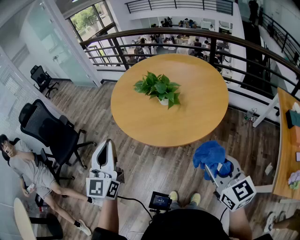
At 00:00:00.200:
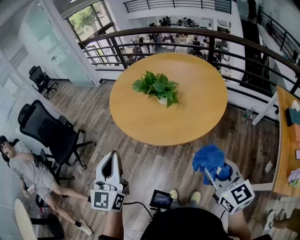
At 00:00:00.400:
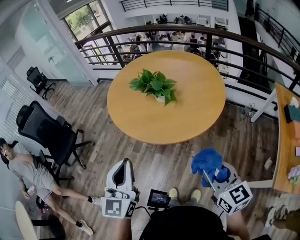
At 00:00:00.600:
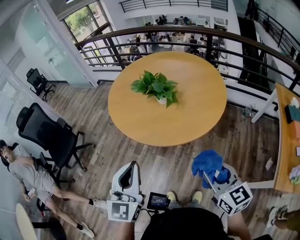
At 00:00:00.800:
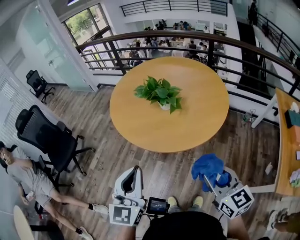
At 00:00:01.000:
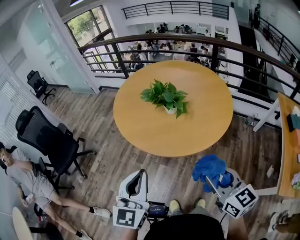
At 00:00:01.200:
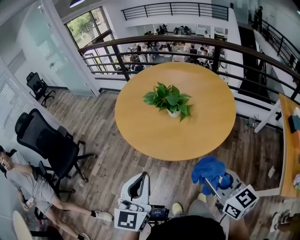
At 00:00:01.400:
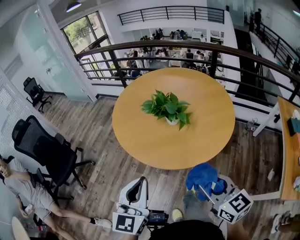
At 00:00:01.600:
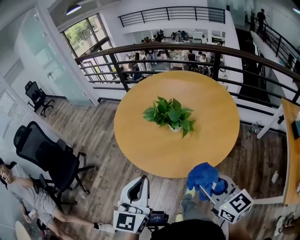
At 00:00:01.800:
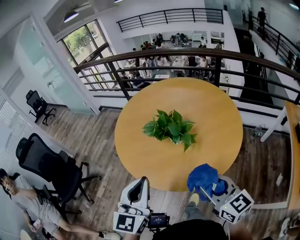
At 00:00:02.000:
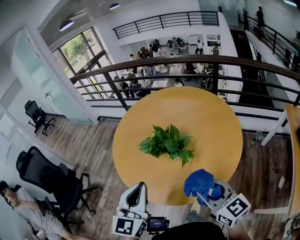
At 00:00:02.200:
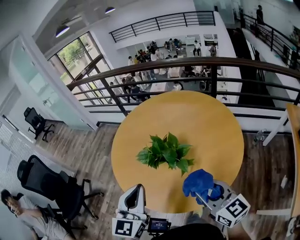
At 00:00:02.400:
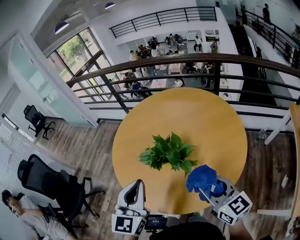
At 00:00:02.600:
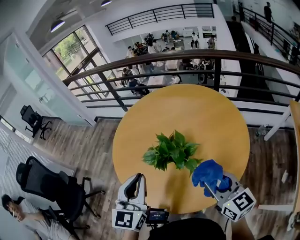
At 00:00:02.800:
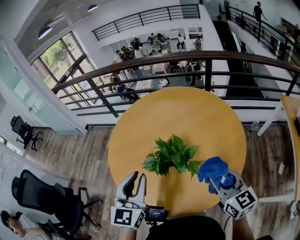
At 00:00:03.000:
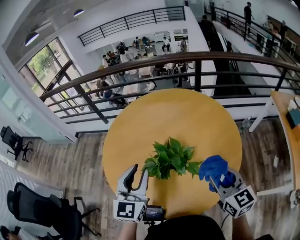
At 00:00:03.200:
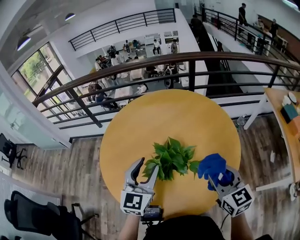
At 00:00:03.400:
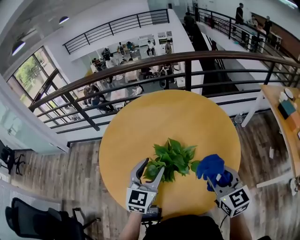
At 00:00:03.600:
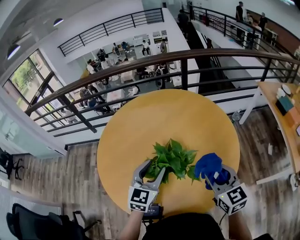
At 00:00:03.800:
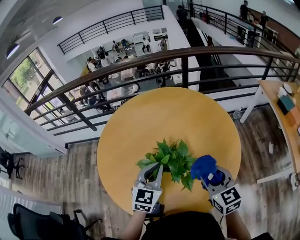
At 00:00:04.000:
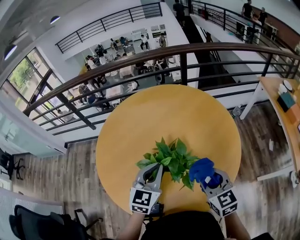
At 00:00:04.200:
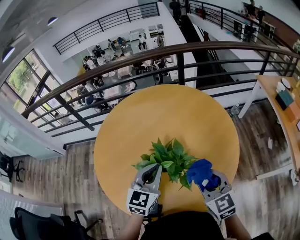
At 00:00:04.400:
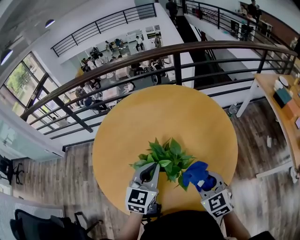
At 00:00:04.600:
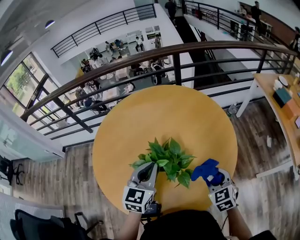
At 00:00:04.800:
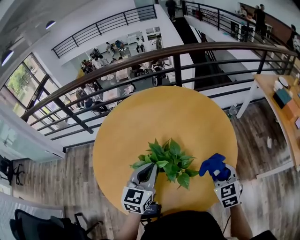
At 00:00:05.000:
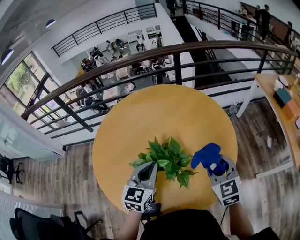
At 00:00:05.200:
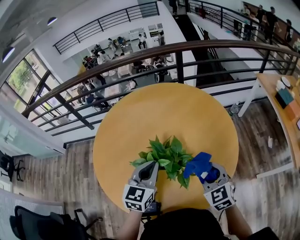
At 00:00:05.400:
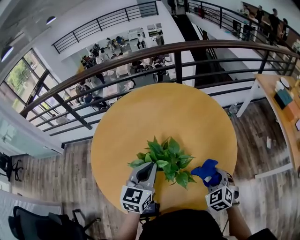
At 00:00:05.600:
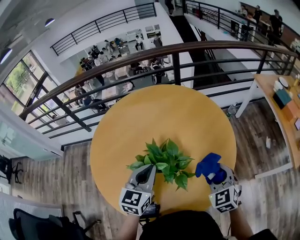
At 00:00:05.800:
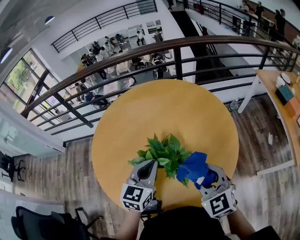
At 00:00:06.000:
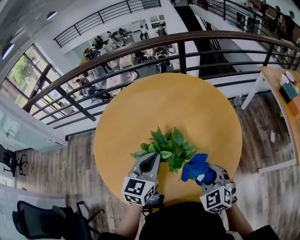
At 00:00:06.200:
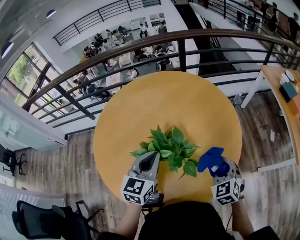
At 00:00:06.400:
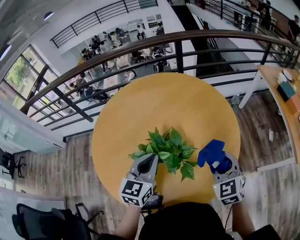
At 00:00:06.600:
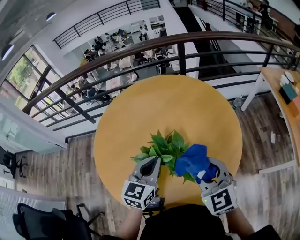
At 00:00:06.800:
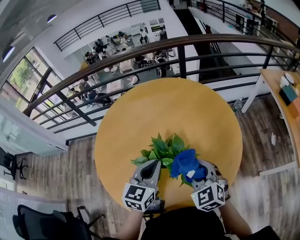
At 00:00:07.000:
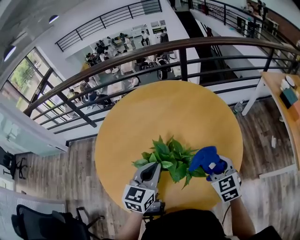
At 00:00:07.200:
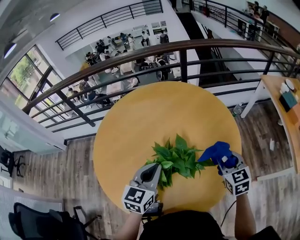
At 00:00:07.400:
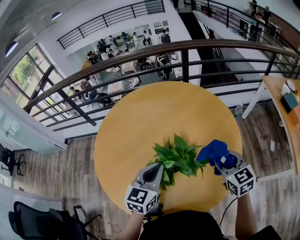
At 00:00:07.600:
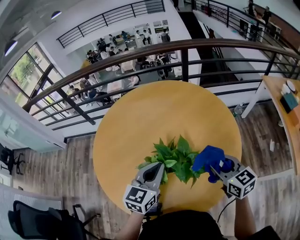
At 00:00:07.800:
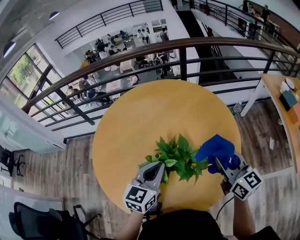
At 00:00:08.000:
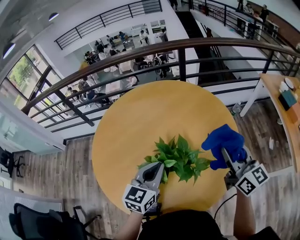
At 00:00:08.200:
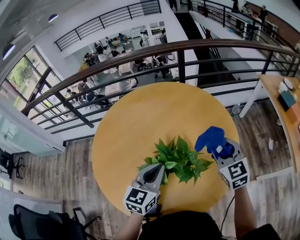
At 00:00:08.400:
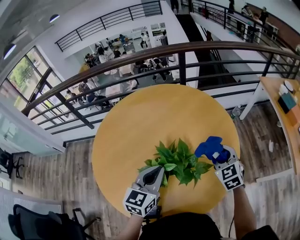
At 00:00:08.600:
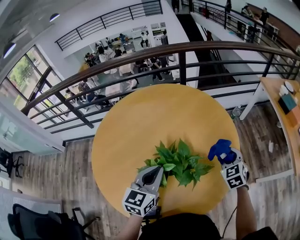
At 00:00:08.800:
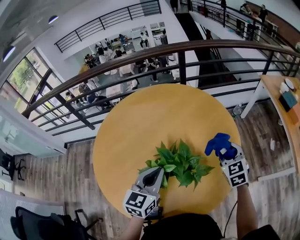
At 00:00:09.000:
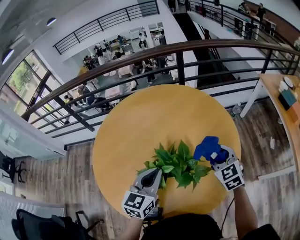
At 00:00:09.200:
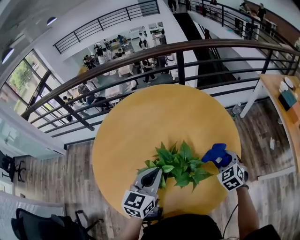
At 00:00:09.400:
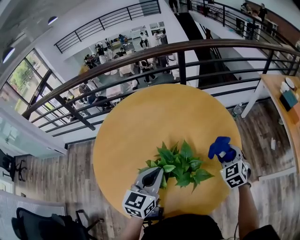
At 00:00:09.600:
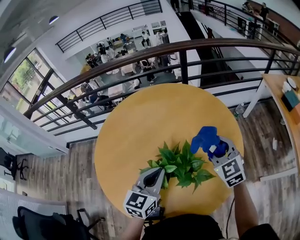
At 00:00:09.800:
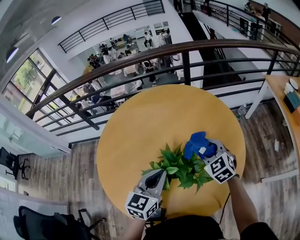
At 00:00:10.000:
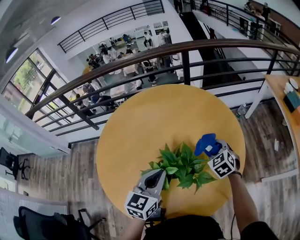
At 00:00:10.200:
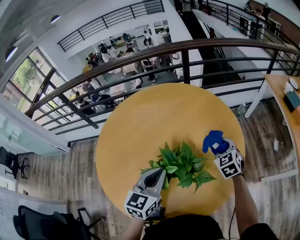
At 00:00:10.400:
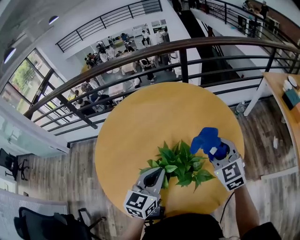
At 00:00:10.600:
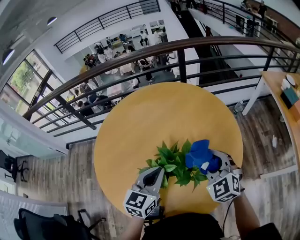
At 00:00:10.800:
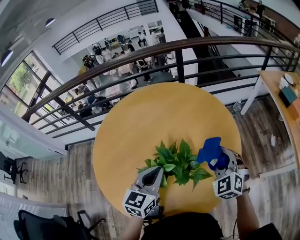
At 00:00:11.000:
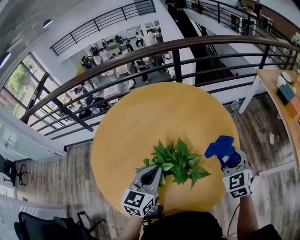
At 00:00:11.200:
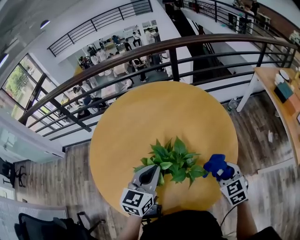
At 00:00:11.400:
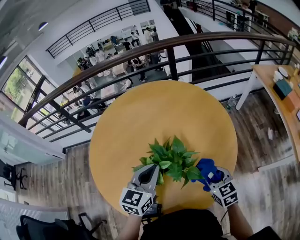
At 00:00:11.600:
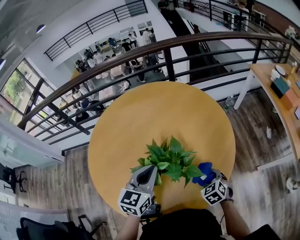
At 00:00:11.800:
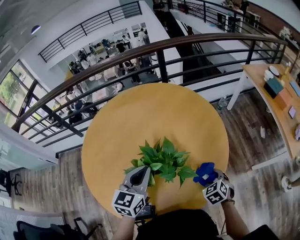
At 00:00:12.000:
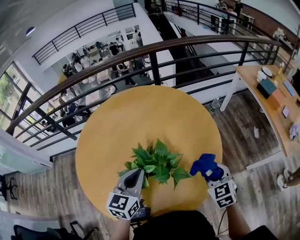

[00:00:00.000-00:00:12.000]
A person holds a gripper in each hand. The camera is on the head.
00:00:00.000 to 00:00:01.600: The left gripper travels forward and downward by roughly 10 cm; the right gripper shifts some 15 cm forward and to the left.
00:00:01.600 to 00:00:03.000: Both grippers travel together forward, about 30 cm. The right gripper turns by roughly 30 degrees. Meanwhile the left gripper opens up.
00:00:03.000 to 00:00:04.400: The left gripper heads downward, forward and to the right, covering approximately 10 cm, rotates roughly 20 degrees, and closes up, while the right gripper shifts about 10 cm downward and to the left, and turns by some 20 degrees.
00:00:04.400 to 00:00:06.000: The right gripper swings up and down, about 10 cm each way, with 3 reversals.
00:00:06.000 to 00:00:07.600: The right gripper moves left and right over roughly 15 cm, changing direction 3 times, and rotates approximately 30 degrees.
00:00:07.600 to 00:00:09.000: The right gripper shifts roughly 5 cm forward, moves approximately 10 cm upward and comes back, and turns by about 30 degrees.
00:00:09.000 to 00:00:10.400: The right gripper moves up and down over some 10 cm, changing direction 3 times.
00:00:10.400 to 00:00:12.000: The right gripper goes roughly 20 cm backward, to the right and downward, and rotates approximately 20 degrees.

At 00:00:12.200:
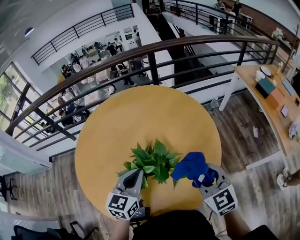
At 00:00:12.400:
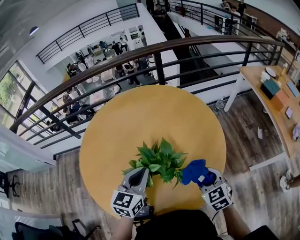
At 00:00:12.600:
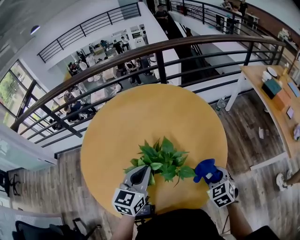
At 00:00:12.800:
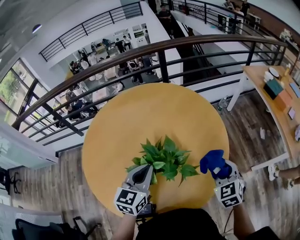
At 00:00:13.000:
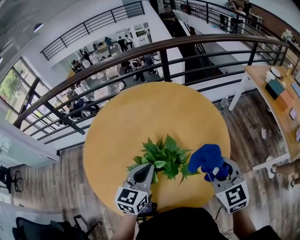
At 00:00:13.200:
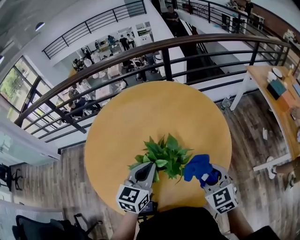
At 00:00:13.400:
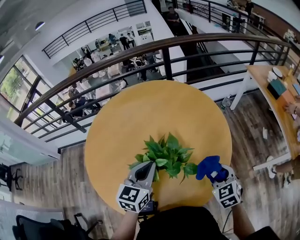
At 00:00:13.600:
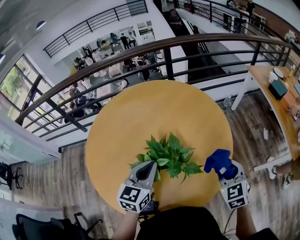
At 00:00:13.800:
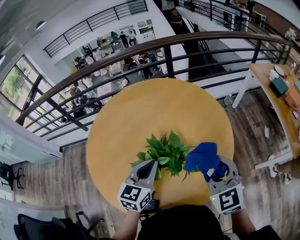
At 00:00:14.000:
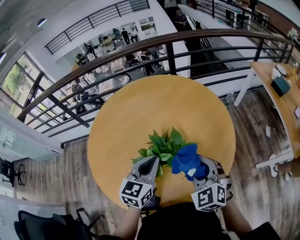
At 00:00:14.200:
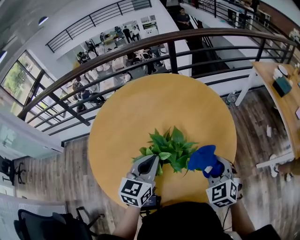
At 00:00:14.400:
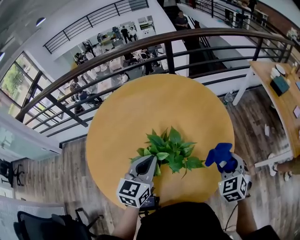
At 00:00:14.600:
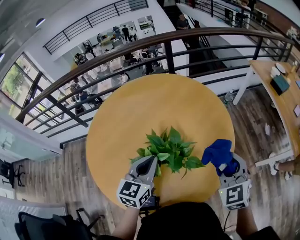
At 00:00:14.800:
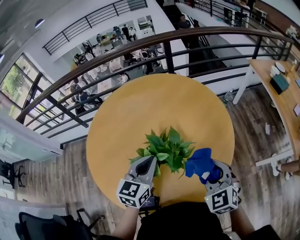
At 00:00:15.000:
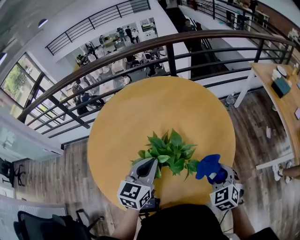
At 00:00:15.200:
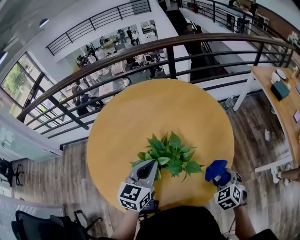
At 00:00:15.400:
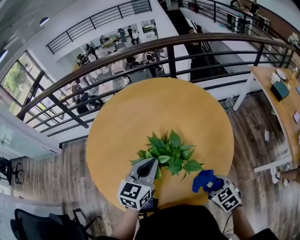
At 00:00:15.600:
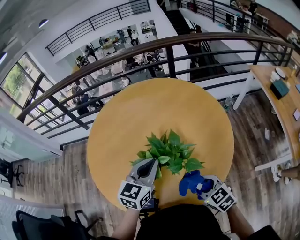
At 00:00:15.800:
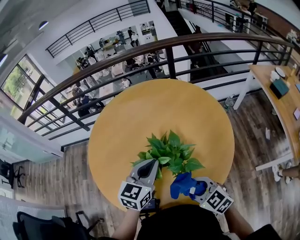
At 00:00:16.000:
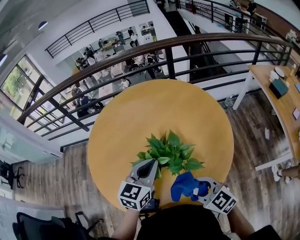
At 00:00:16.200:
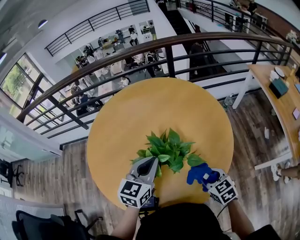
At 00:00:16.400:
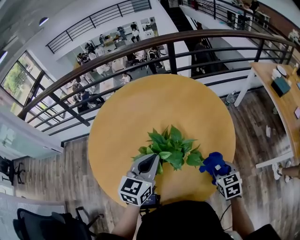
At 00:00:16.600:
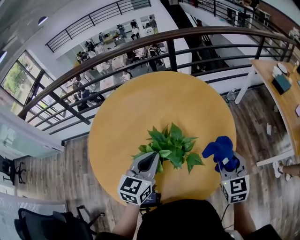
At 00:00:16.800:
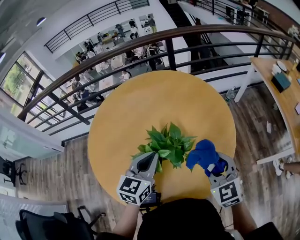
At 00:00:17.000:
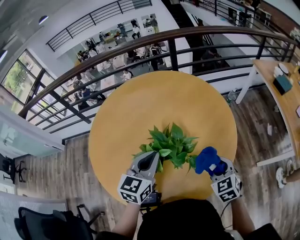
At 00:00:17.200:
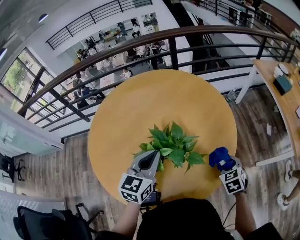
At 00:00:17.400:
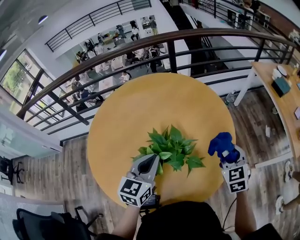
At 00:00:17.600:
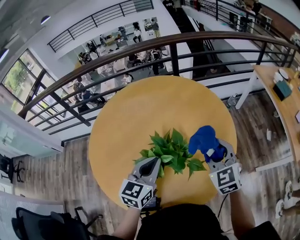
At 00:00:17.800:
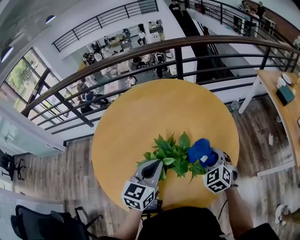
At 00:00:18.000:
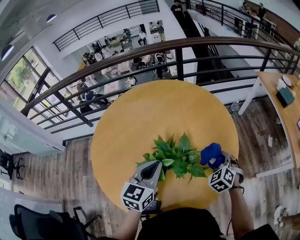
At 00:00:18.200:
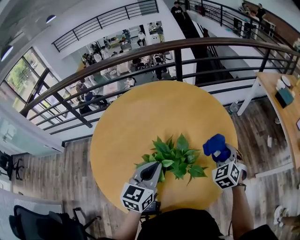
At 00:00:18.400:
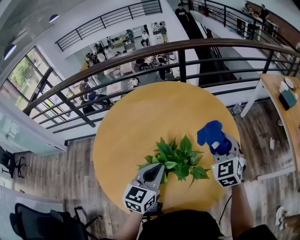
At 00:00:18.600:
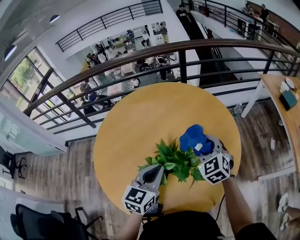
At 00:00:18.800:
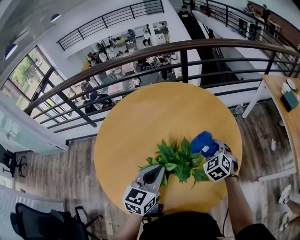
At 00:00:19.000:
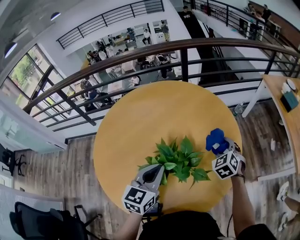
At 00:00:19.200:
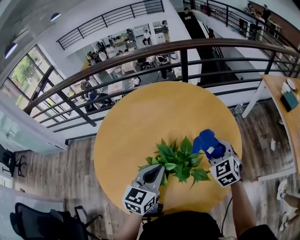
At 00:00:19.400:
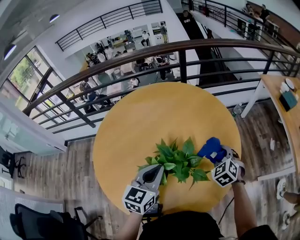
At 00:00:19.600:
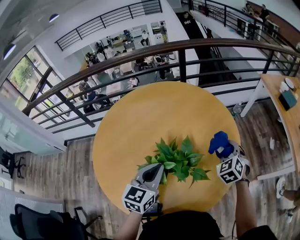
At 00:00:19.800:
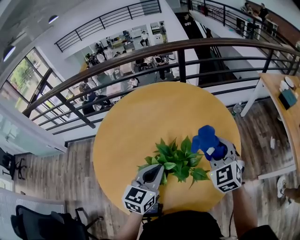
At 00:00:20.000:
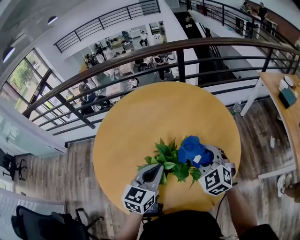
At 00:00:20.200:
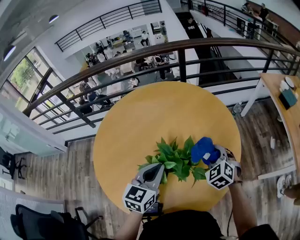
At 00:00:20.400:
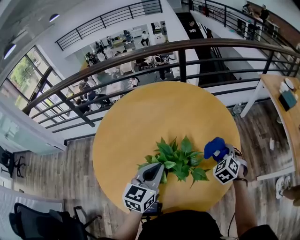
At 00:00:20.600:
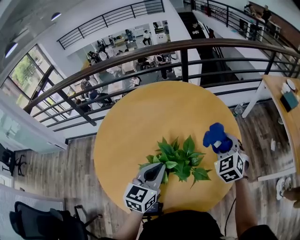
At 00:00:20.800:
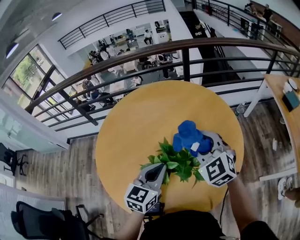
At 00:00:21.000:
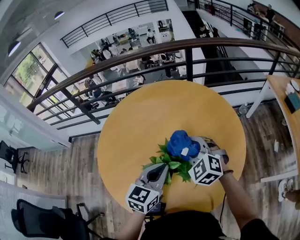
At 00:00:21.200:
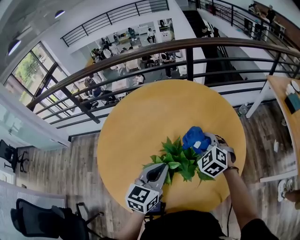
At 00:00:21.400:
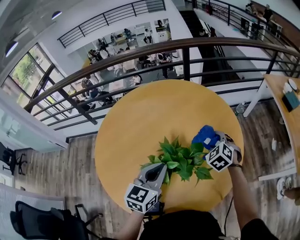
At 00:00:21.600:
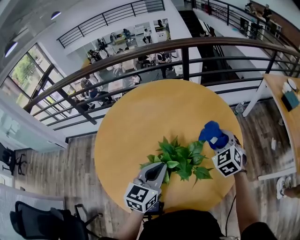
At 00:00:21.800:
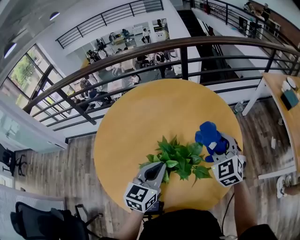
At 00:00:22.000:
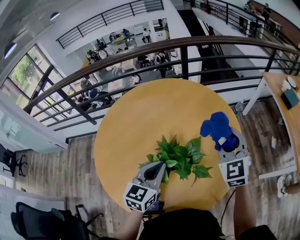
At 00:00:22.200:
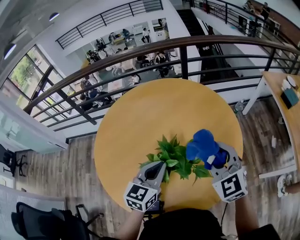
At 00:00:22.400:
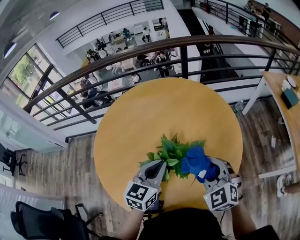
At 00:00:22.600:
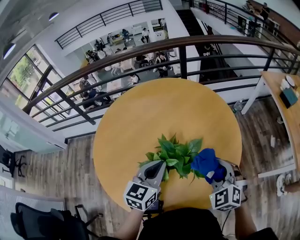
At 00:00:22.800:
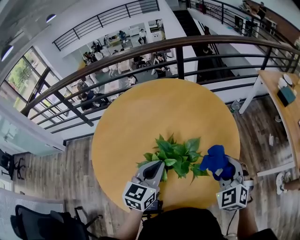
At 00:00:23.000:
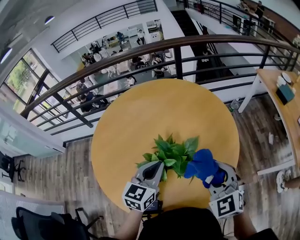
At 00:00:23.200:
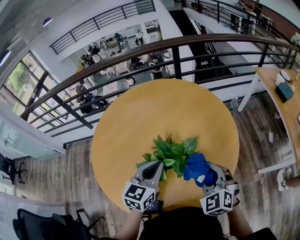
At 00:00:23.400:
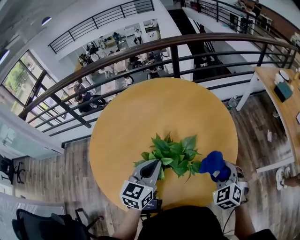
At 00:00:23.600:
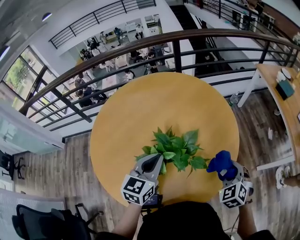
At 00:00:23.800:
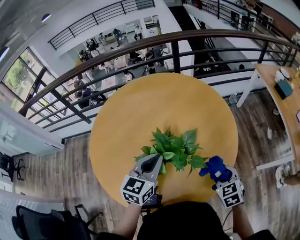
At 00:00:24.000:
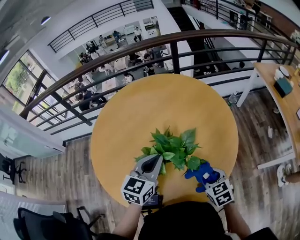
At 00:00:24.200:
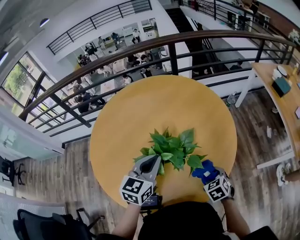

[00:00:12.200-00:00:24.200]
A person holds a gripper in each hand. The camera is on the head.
00:00:12.200 to 00:00:13.800: The right gripper goes up and down, some 15 cm each way, reversing 3 times.
00:00:13.800 to 00:00:15.200: The right gripper moves up and down over roughly 15 cm, changing direction 2 times, and rotates roughly 30 degrees.
00:00:15.200 to 00:00:16.600: The right gripper goes up and down, some 10 cm each way, reversing 2 times, and changes its angle by about 30 degrees.
00:00:16.600 to 00:00:18.200: The right gripper moves up and down over about 15 cm, changing direction 3 times, and rotates some 30 degrees.
00:00:18.200 to 00:00:19.800: The right gripper swings up and down, some 10 cm each way, with 4 reversals, and changes its angle by approximately 20 degrees.
00:00:19.800 to 00:00:21.200: The right gripper goes left and right, about 20 cm each way, reversing 3 times.
00:00:21.200 to 00:00:22.600: The right gripper heads backward and to the right, covering some 15 cm.
00:00:22.600 to 00:00:24.200: The right gripper heads downward, covering approximately 15 cm, and swivels roughly 40 degrees.
